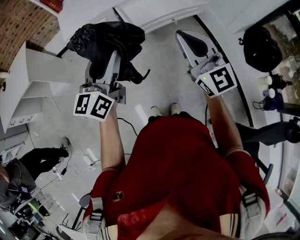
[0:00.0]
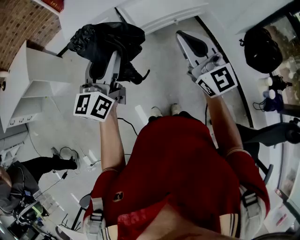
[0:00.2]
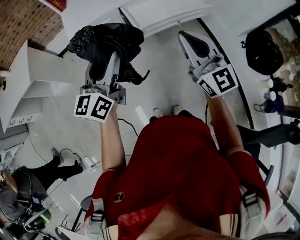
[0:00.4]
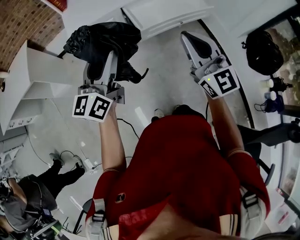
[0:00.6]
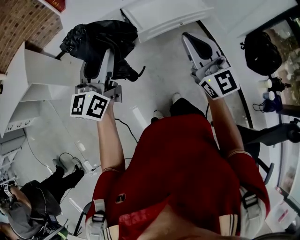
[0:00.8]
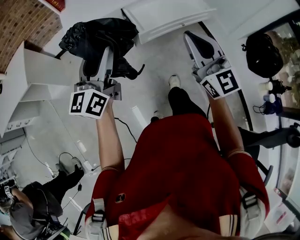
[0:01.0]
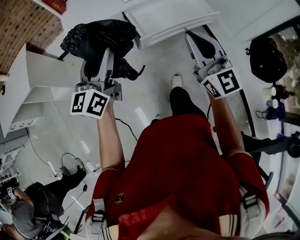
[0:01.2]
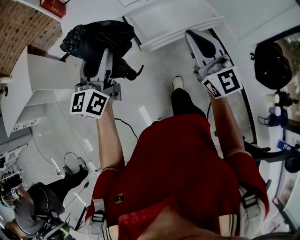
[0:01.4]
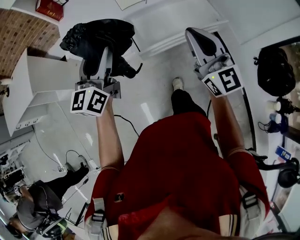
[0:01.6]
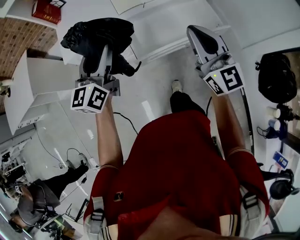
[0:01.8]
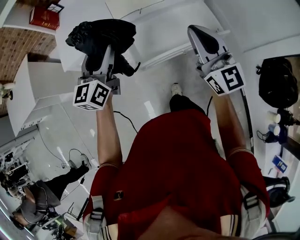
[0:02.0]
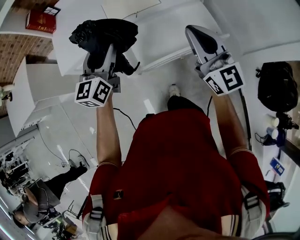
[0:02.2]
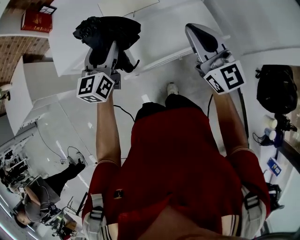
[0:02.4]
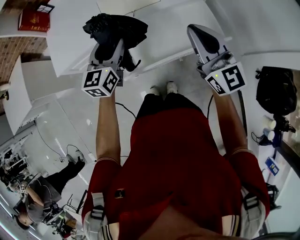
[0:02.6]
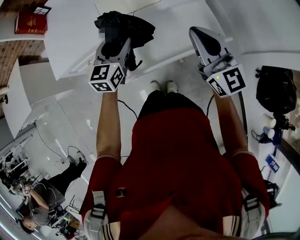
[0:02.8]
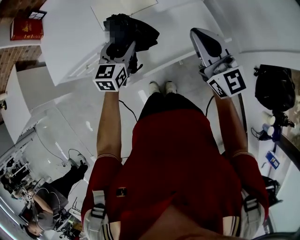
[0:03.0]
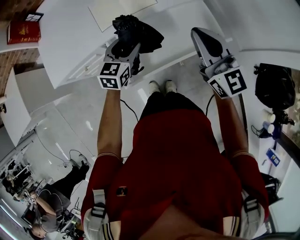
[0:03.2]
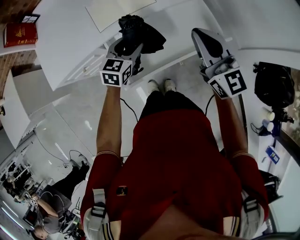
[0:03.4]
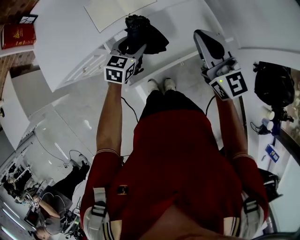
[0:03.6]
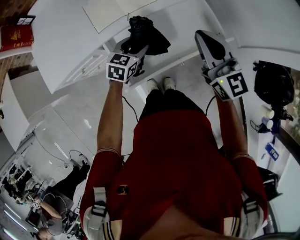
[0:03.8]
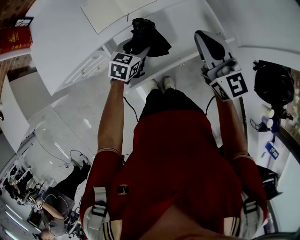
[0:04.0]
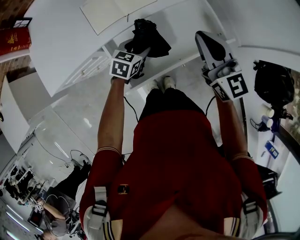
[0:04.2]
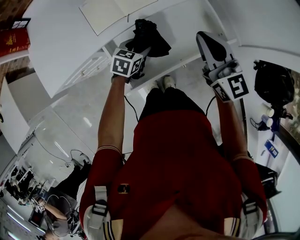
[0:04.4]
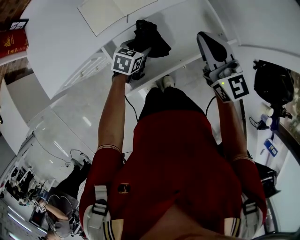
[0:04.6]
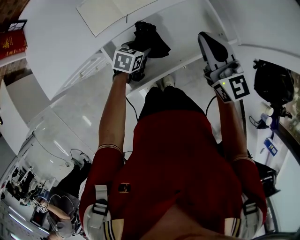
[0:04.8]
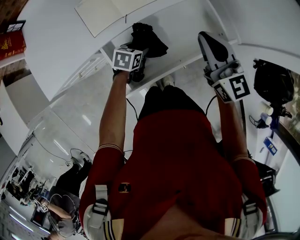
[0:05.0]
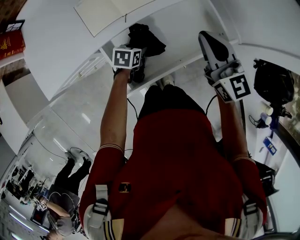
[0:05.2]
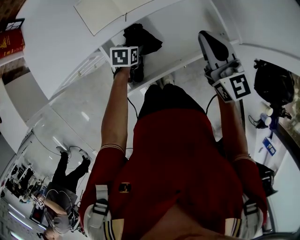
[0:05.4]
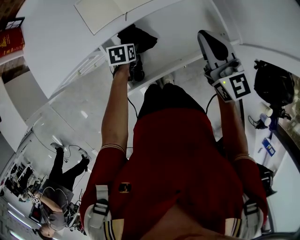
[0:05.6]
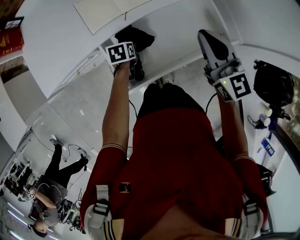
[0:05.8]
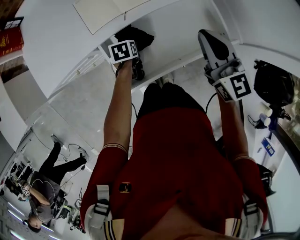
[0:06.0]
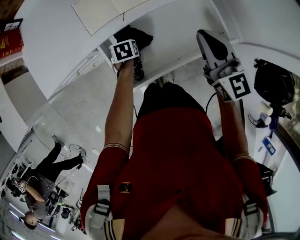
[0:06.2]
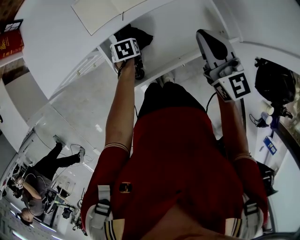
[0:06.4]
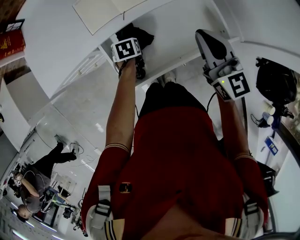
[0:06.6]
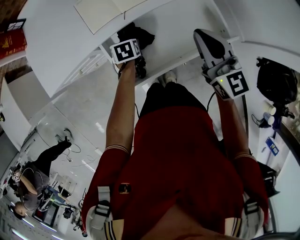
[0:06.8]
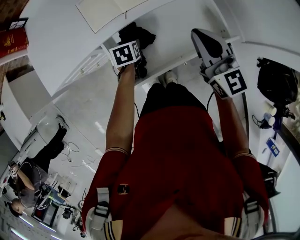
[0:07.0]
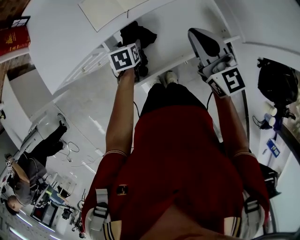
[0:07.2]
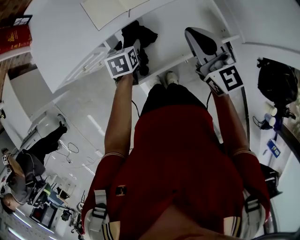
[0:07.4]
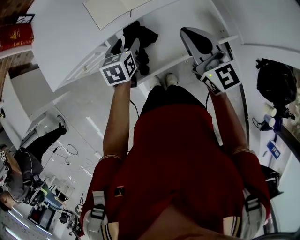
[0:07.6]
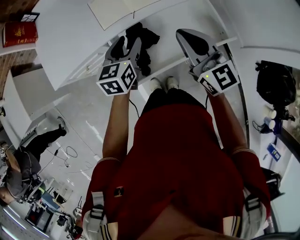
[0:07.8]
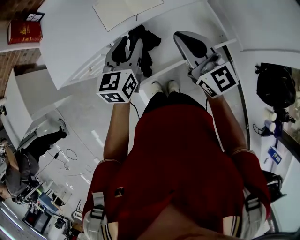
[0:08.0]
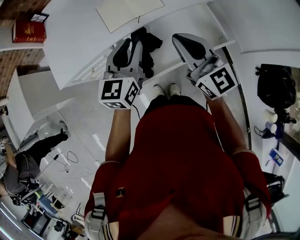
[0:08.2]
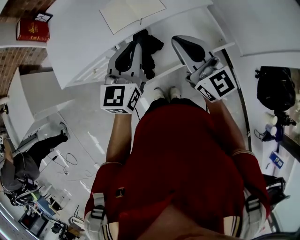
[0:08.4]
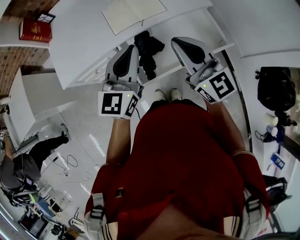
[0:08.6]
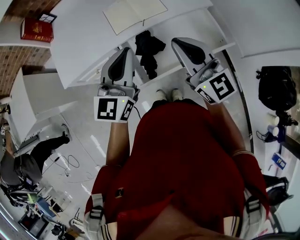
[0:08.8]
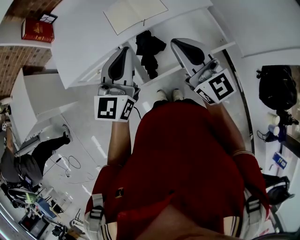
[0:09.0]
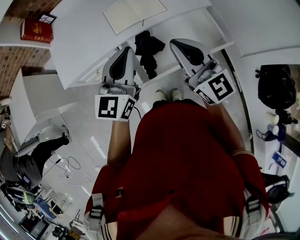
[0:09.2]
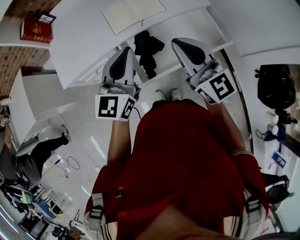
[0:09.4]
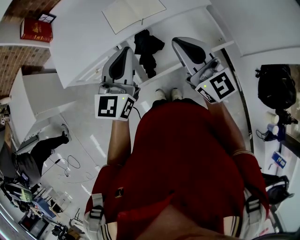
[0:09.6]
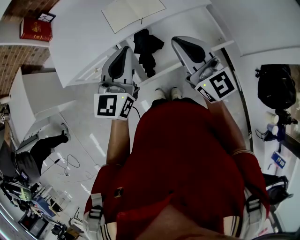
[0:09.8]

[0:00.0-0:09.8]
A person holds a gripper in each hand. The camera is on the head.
0:00.0 to 0:01.4: Both grippers move forward, about 15 cm.
0:01.4 to 0:02.8: The left gripper heads forward, to the right and downward, covering approximately 40 cm, and rotates approximately 30 degrees, while the right gripper moves forward and to the right, roughly 30 cm.
0:02.8 to 0:04.2: The right gripper moves forward and downward, some 10 cm. The left gripper is displaced downward by about 15 cm, and rotates some 40 degrees.
0:04.2 to 0:05.6: The left gripper heads downward and to the left, covering approximately 10 cm, and rotates approximately 40 degrees.
0:05.6 to 0:07.0: The grippers make only small movements.
0:07.0 to 0:08.4: The right gripper moves to the left, upward and backward, roughly 15 cm, while the left gripper shifts approximately 30 cm upward, tips its fingers upward by about 60 degrees, and closes its fingers.
0:08.4 to 0:09.8: The left gripper changes place by some 5 cm.

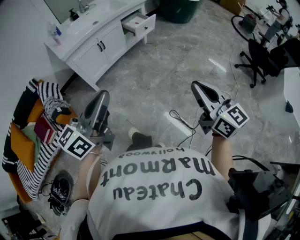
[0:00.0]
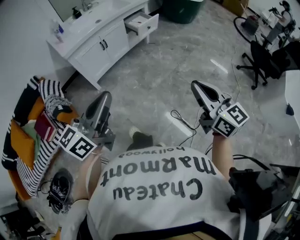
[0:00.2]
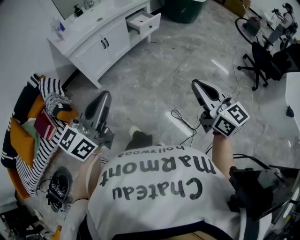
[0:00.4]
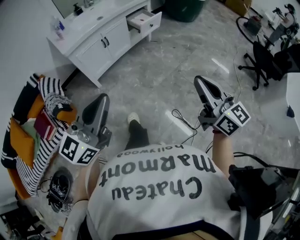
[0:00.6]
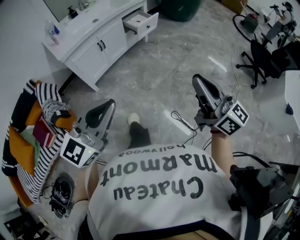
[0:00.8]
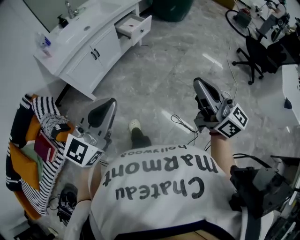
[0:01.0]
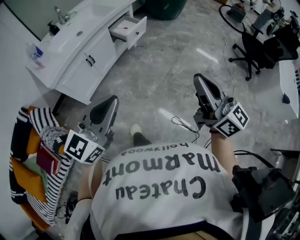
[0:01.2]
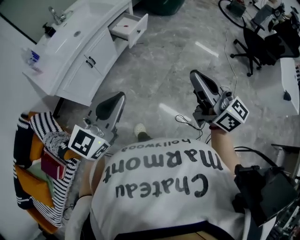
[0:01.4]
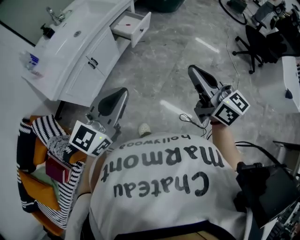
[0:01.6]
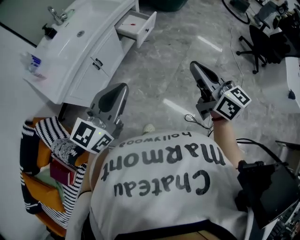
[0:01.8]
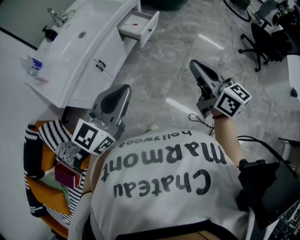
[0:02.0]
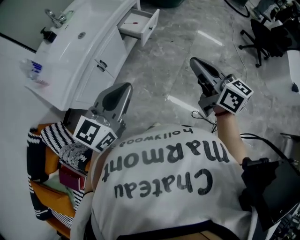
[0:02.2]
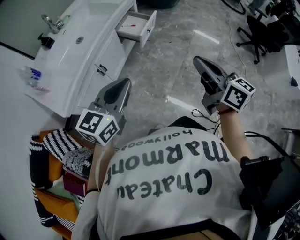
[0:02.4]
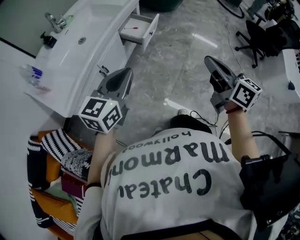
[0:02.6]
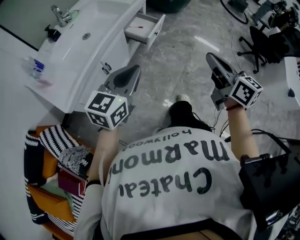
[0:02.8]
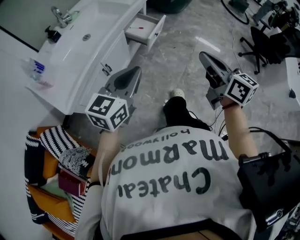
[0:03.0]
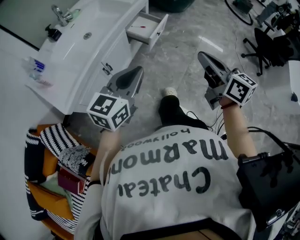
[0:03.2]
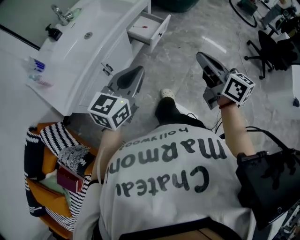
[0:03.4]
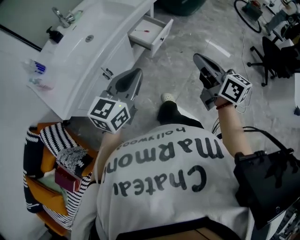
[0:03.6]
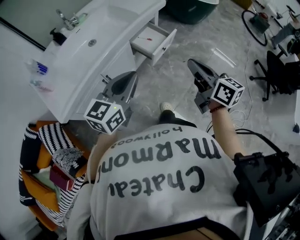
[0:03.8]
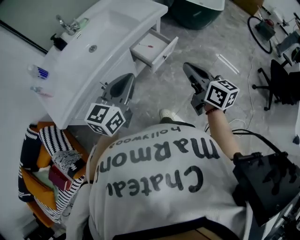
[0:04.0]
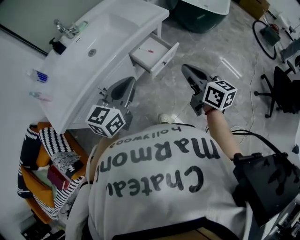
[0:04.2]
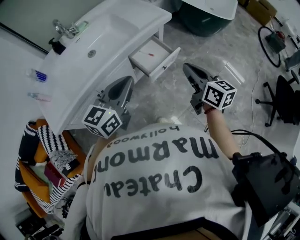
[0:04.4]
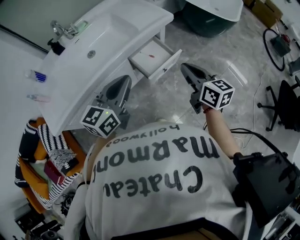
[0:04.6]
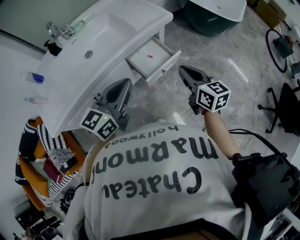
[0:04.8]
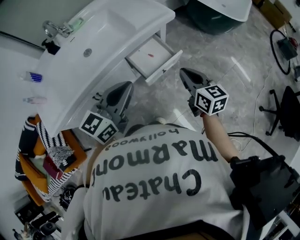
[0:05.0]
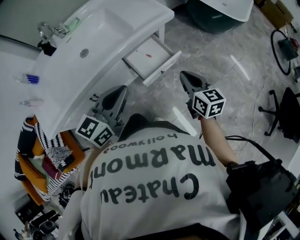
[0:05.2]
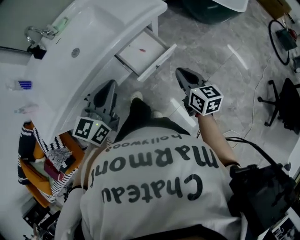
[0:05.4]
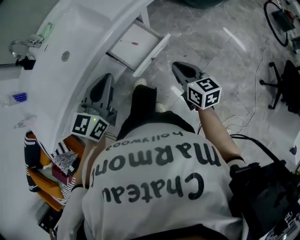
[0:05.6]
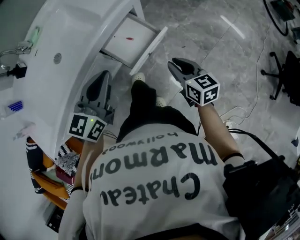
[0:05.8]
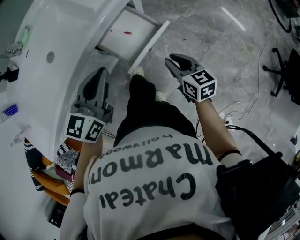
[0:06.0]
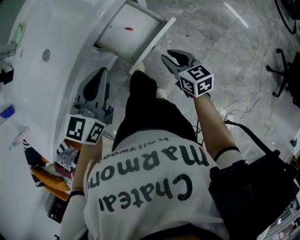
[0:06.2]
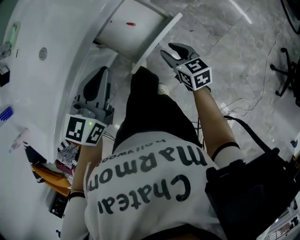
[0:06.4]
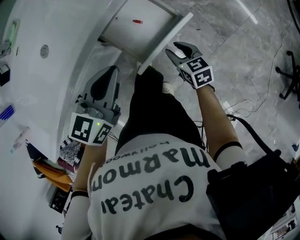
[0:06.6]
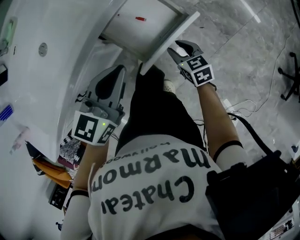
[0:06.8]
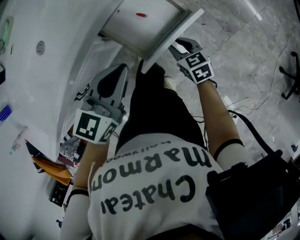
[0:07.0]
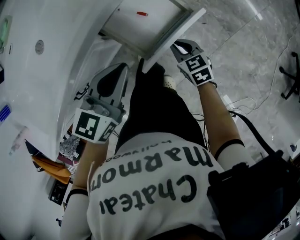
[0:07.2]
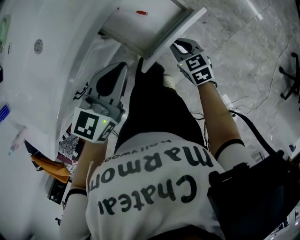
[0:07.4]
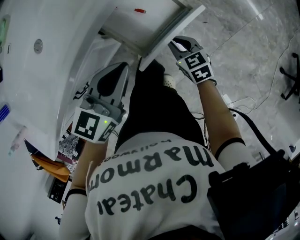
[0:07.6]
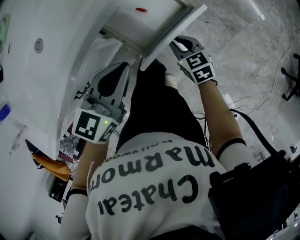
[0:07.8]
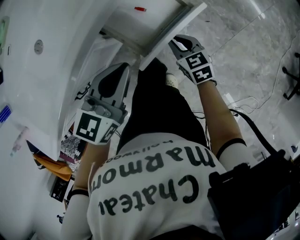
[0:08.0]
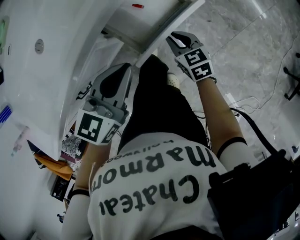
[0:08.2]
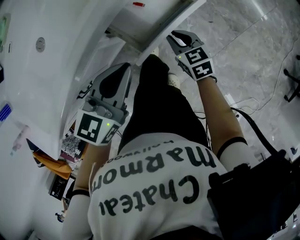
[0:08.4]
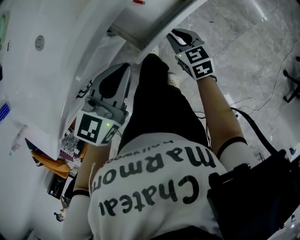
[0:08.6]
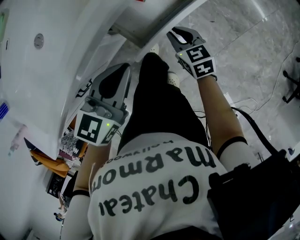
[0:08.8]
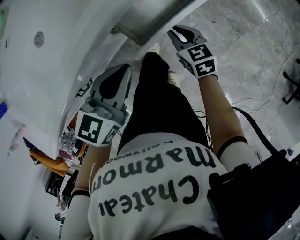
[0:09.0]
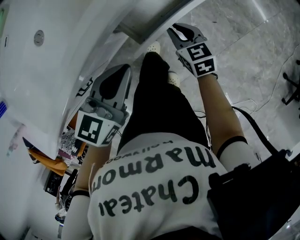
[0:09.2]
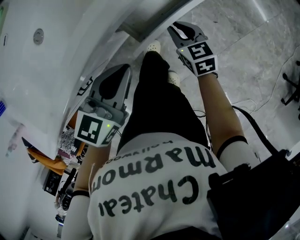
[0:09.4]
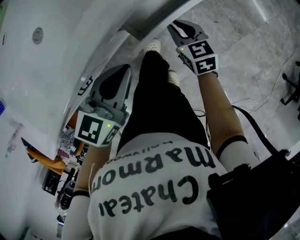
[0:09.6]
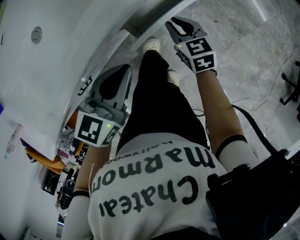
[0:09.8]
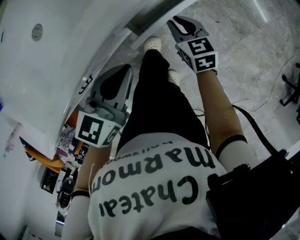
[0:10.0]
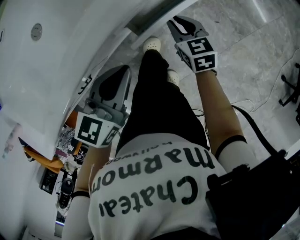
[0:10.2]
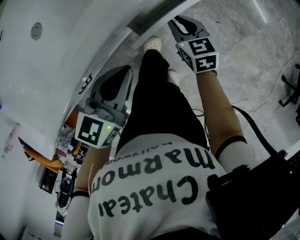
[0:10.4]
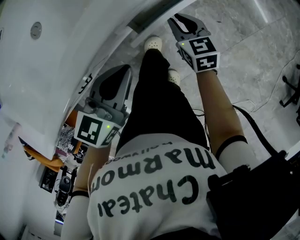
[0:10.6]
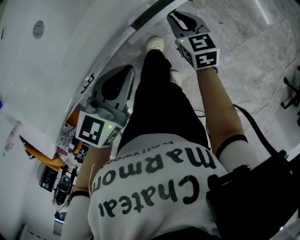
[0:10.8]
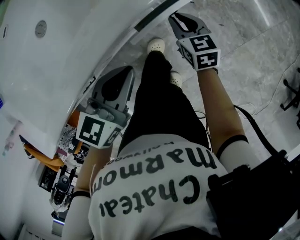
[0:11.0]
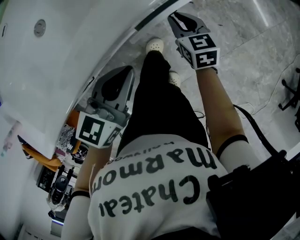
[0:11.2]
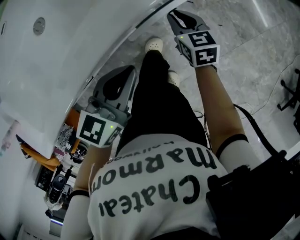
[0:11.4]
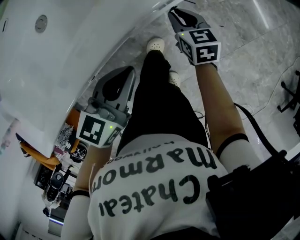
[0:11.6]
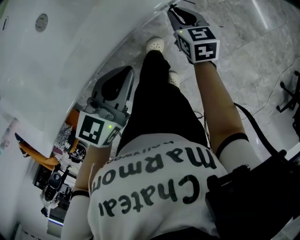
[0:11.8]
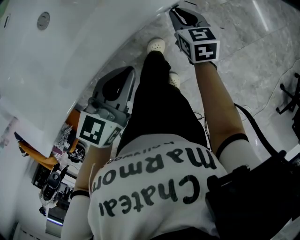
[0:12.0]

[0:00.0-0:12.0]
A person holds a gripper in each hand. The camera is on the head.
0:00.0 to 0:01.6: The right gripper moves forward and to the left, approximately 30 cm, while the left gripper shifts roughly 30 cm forward, and changes its angle by about 30 degrees.
0:01.6 to 0:03.0: Both grippers travel together forward and to the left, approximately 15 cm.
0:03.0 to 0:04.4: The two grippers go approximately 25 cm forward. The left gripper rotates about 20 degrees.
0:04.4 to 0:06.0: The left gripper travels forward and downward by roughly 20 cm. Meanwhile the right gripper goes roughly 25 cm downward and forward, and rotates about 20 degrees.
0:06.0 to 0:07.6: The right gripper is displaced downward and to the left by approximately 20 cm, and rotates some 20 degrees; the left gripper moves downward, roughly 10 cm.
0:07.6 to 0:09.0: The right gripper changes place by roughly 5 cm.
0:09.0 to 0:10.4: The grippers move only a little.
0:10.4 to 0:12.0: The grippers make only small movements.

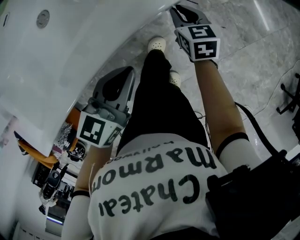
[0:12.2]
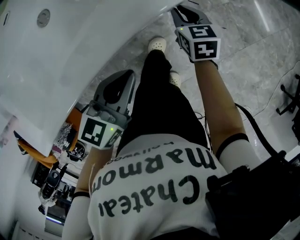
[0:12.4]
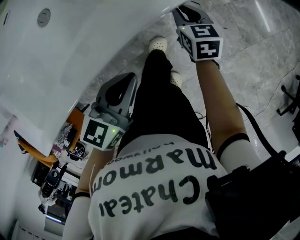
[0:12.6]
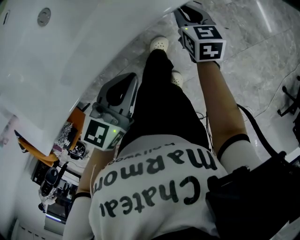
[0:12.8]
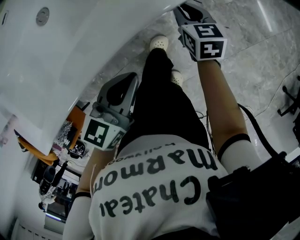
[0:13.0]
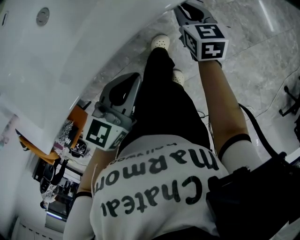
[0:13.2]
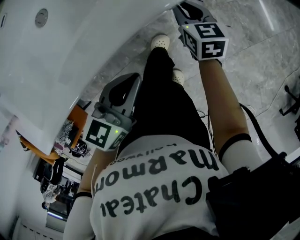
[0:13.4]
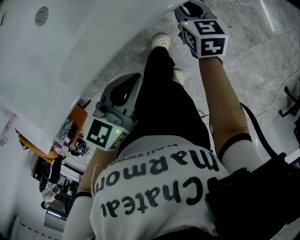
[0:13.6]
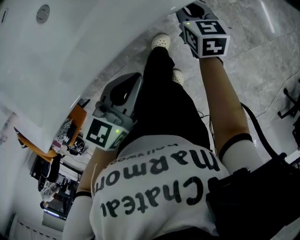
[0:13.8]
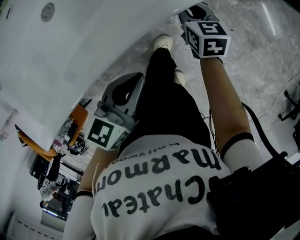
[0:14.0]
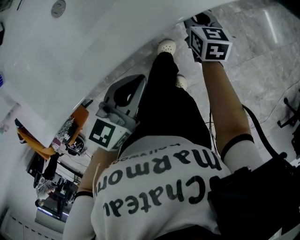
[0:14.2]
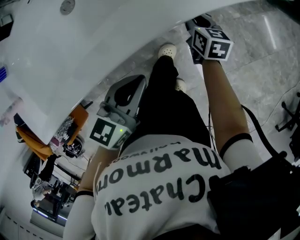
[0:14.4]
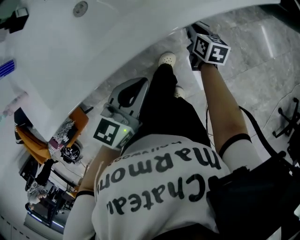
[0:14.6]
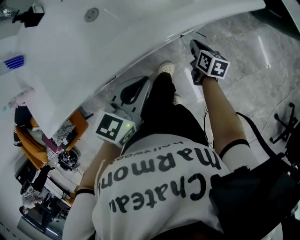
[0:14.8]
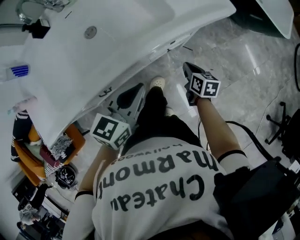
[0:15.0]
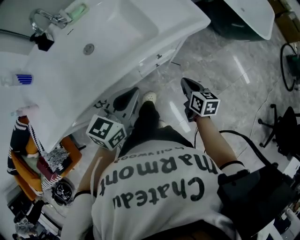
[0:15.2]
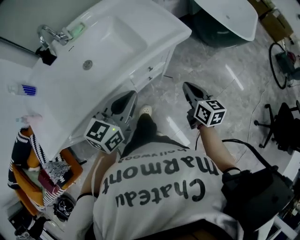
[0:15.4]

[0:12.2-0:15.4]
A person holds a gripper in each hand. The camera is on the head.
0:12.2 to 0:13.8: The grippers stay close to where they were, moving slightly.
0:13.8 to 0:15.4: The left gripper travels upward by roughly 25 cm, and changes its angle by roughly 20 degrees, while the right gripper travels upward, backward and to the right by approximately 35 cm.
